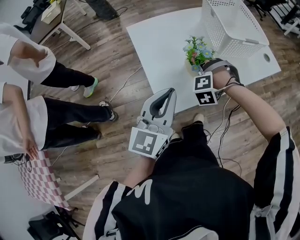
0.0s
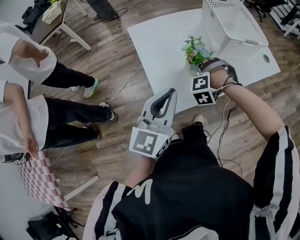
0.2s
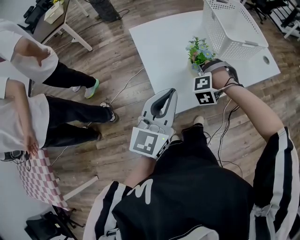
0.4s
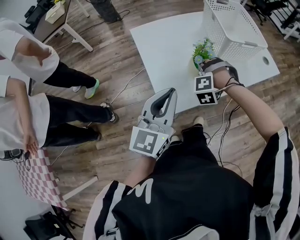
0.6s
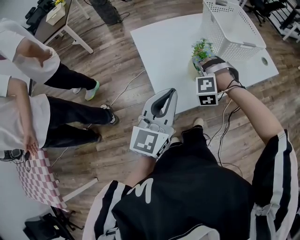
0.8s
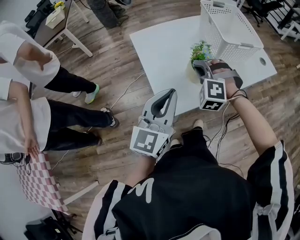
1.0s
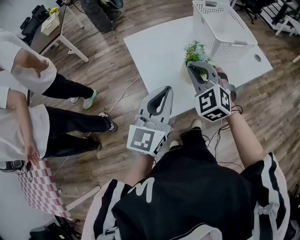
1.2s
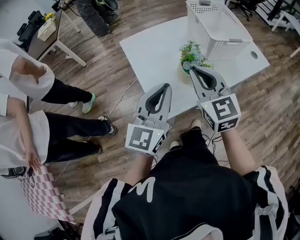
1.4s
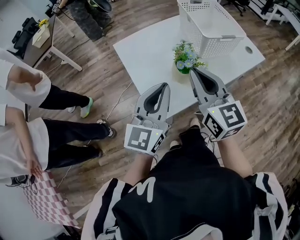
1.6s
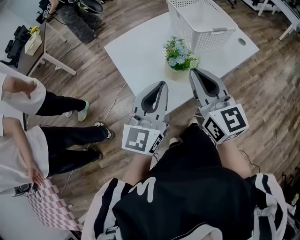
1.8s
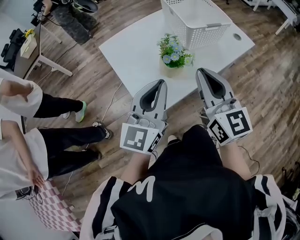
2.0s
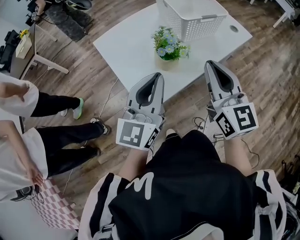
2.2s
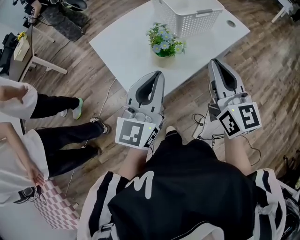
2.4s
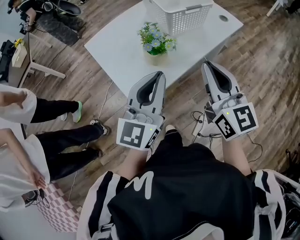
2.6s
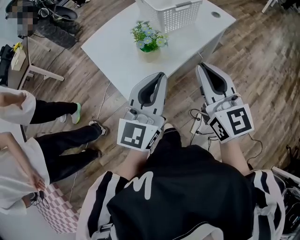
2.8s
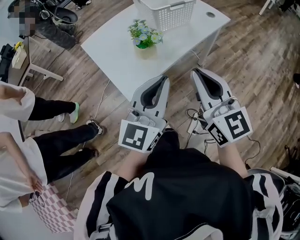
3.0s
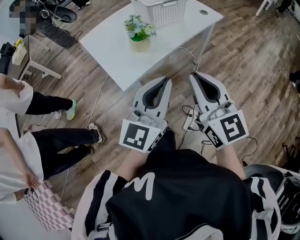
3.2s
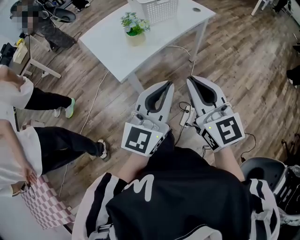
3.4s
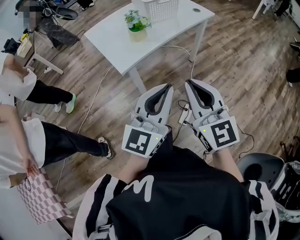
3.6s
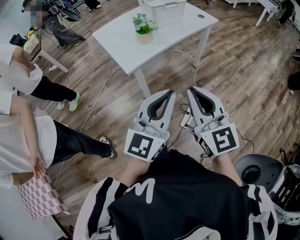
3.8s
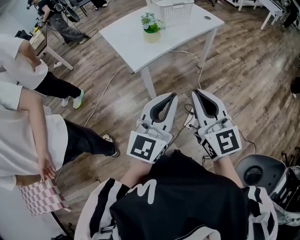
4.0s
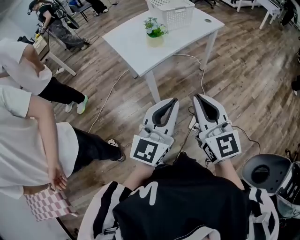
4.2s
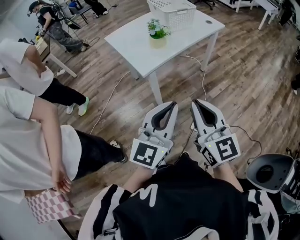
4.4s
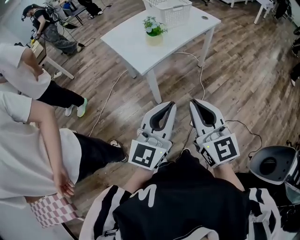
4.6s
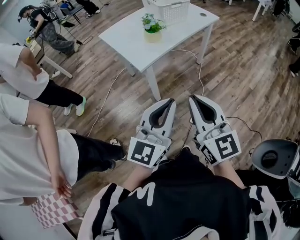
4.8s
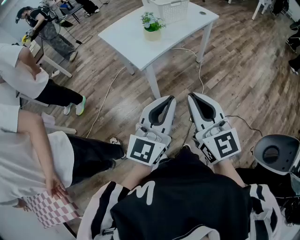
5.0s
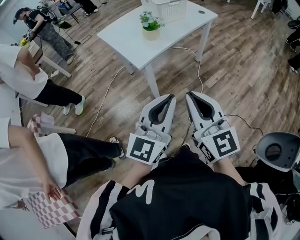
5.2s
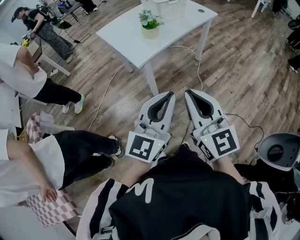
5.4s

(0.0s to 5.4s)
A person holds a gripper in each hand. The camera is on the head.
0.0s - 1.4s: The right gripper moves upward, about 20 cm, and points its fingers roughly 50 degrees further upward.
1.4s - 2.8s: The grippers both shift to the right and backward by some 15 cm. The right gripper changes its angle by some 20 degrees.
2.8s - 4.0s: Both grippers move backward, approximately 30 cm.
4.0s - 5.4s: The two grippers go roughly 5 cm to the left.

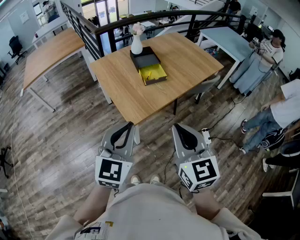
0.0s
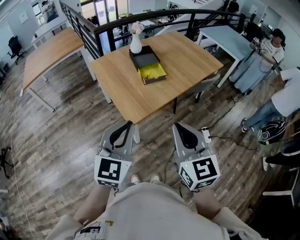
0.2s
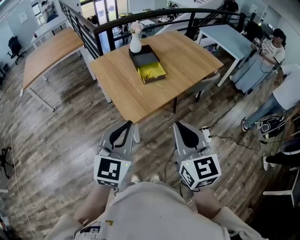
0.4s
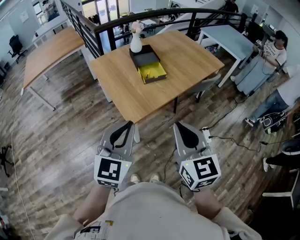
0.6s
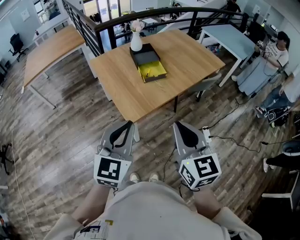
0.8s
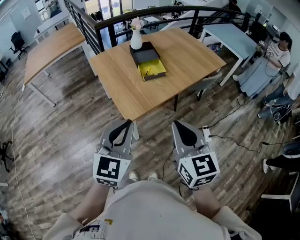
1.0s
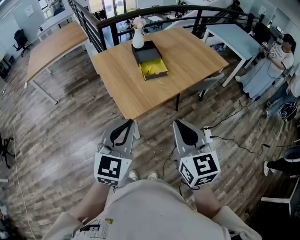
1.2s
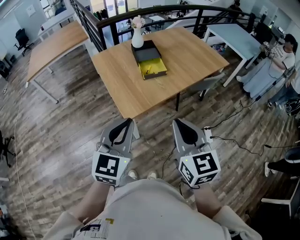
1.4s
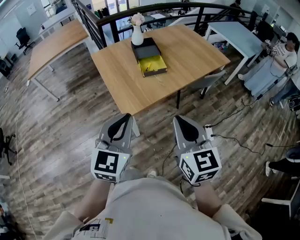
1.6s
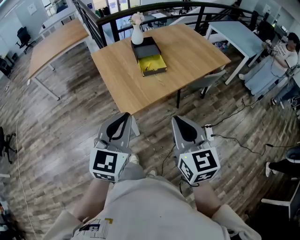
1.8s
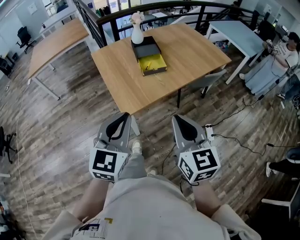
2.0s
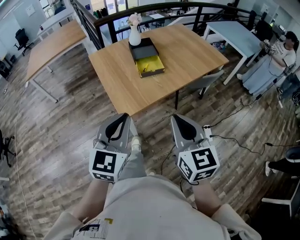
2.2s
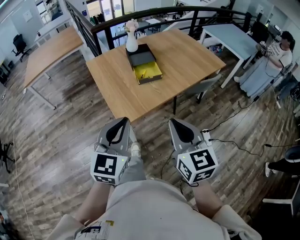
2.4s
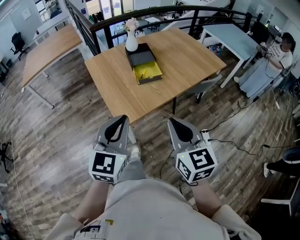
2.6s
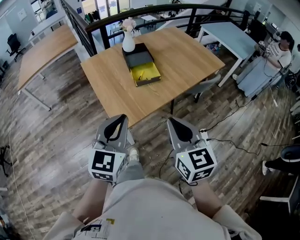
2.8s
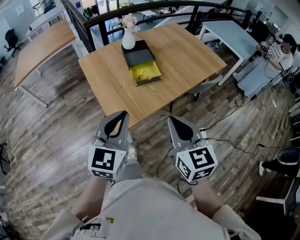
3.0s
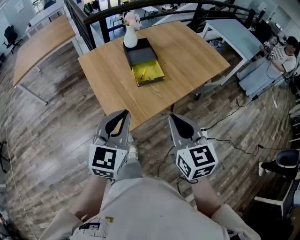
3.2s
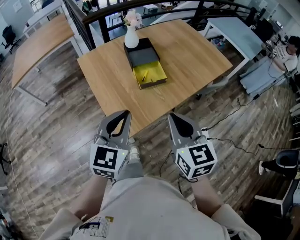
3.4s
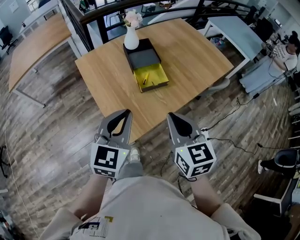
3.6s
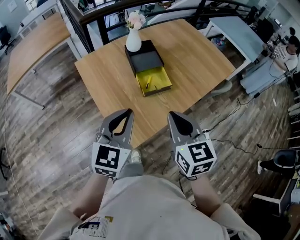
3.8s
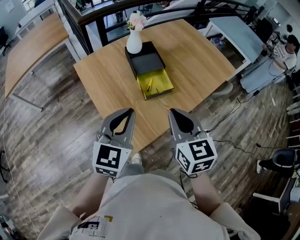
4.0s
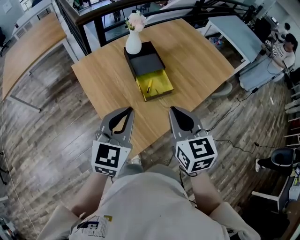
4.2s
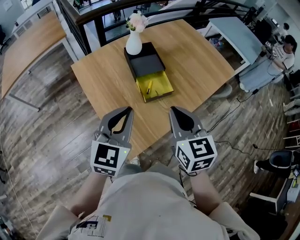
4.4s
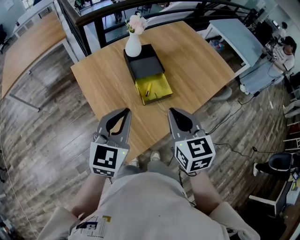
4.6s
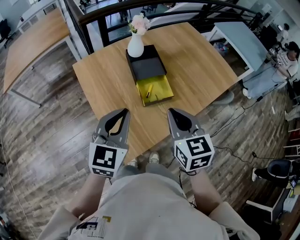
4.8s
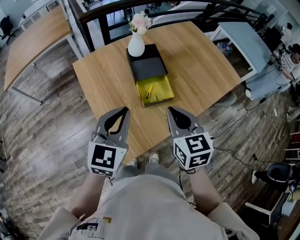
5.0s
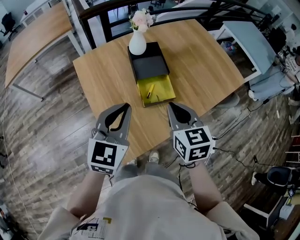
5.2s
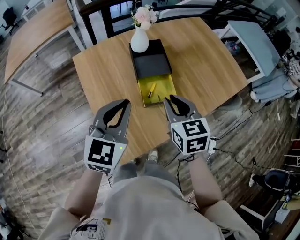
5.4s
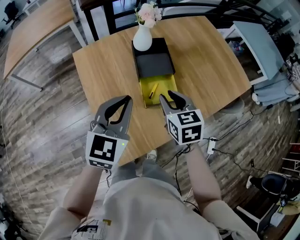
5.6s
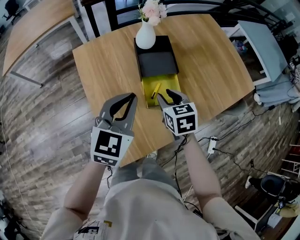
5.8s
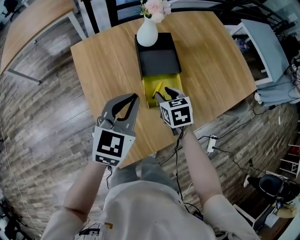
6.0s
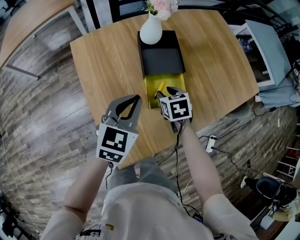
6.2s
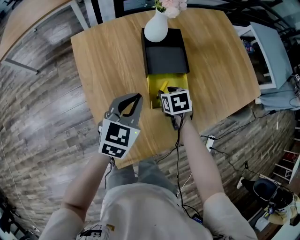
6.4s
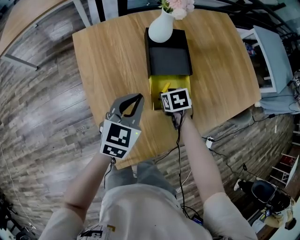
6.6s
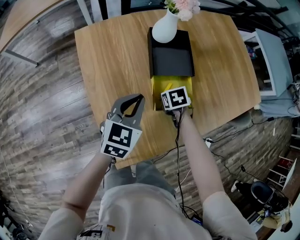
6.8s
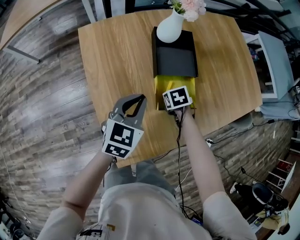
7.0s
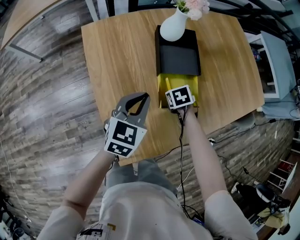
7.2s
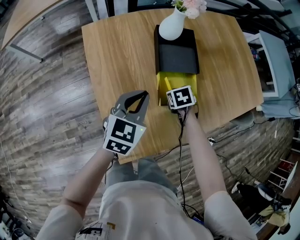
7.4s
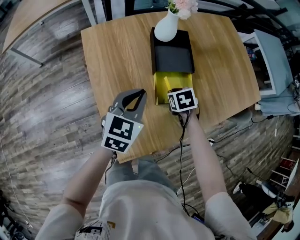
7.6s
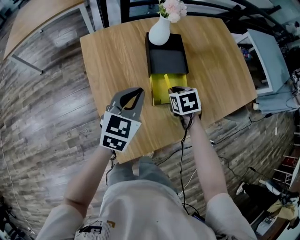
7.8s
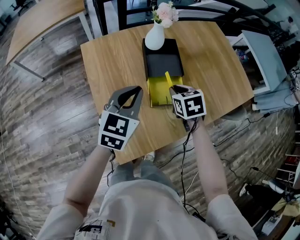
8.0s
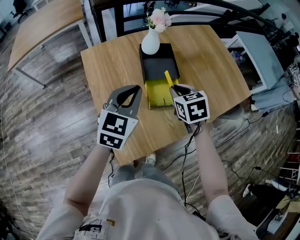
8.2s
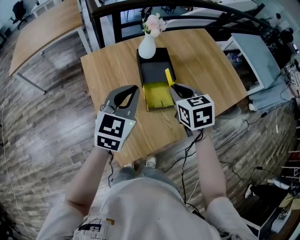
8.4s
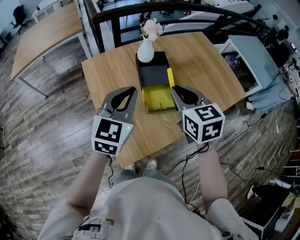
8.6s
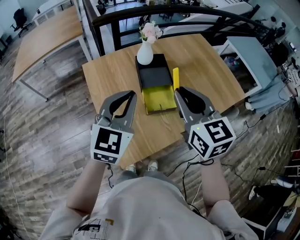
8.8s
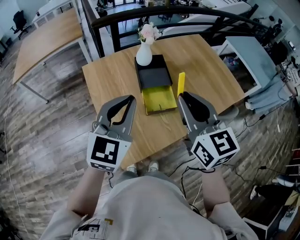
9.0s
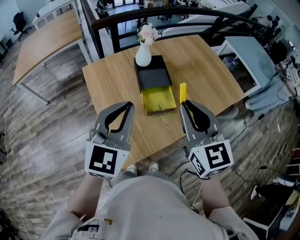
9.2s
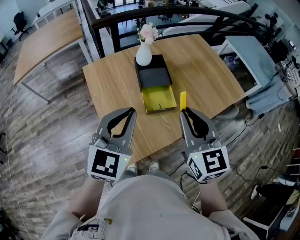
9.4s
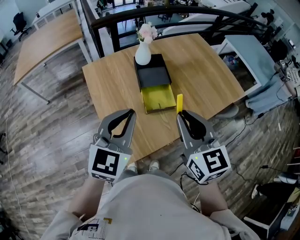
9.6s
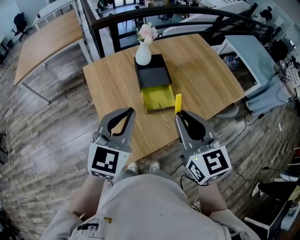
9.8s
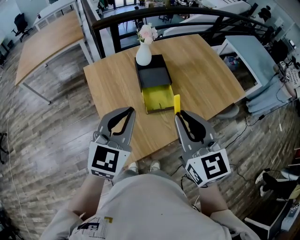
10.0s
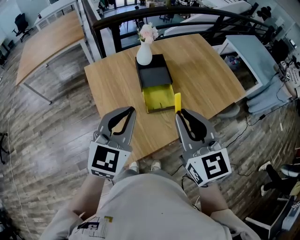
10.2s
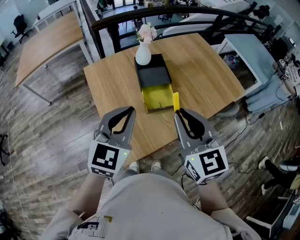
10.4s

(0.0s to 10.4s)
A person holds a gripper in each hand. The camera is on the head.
0.0s - 1.4s: The grippers both shift to the right by some 5 cm.
1.4s - 3.0s: The grippers both shift forward by roughly 15 cm.
3.0s - 4.4s: Both grippers move forward and to the left, roughly 25 cm.
4.4s - 6.0s: The right gripper moves downward and forward, approximately 30 cm, swivels approximately 30 degrees, and opens its fingers; the left gripper moves forward and downward, about 20 cm.
6.0s - 7.4s: Both grippers move downward, approximately 10 cm. The right gripper turns by about 20 degrees, and closes its fingers.
7.4s - 9.0s: The right gripper moves upward, approximately 50 cm, and points its fingers some 60 degrees further upward. The left gripper is displaced upward and backward by approximately 30 cm, and changes its angle by about 20 degrees.
9.0s - 10.4s: The right gripper goes some 5 cm backward. The left gripper shifts by approximately 5 cm.

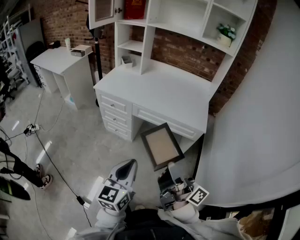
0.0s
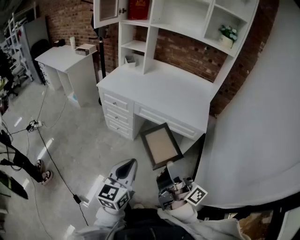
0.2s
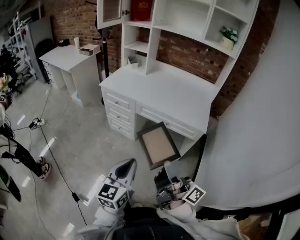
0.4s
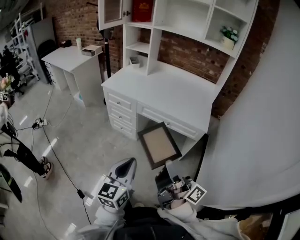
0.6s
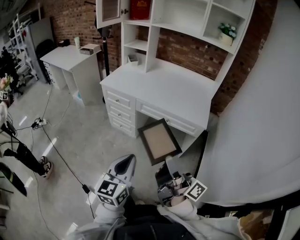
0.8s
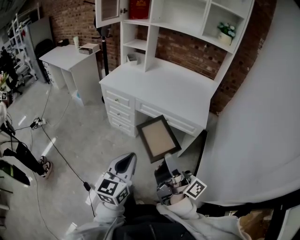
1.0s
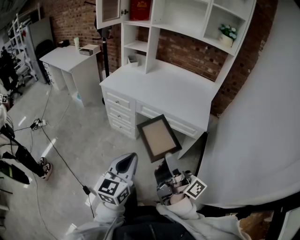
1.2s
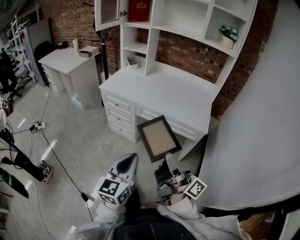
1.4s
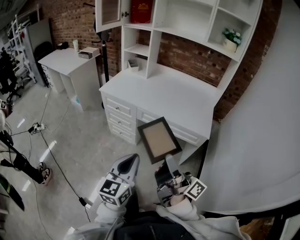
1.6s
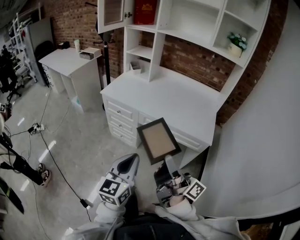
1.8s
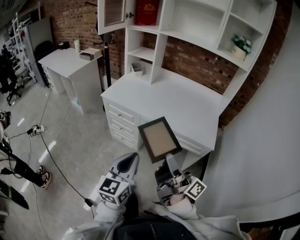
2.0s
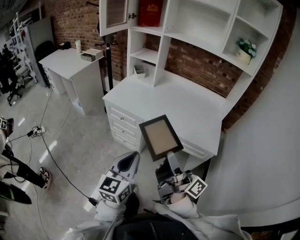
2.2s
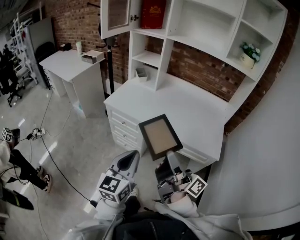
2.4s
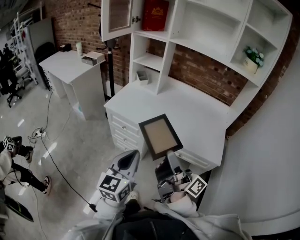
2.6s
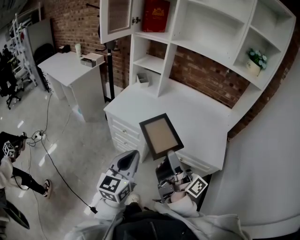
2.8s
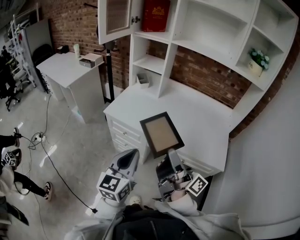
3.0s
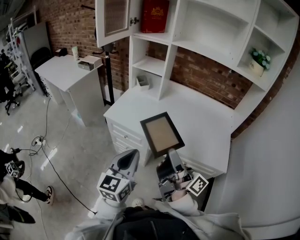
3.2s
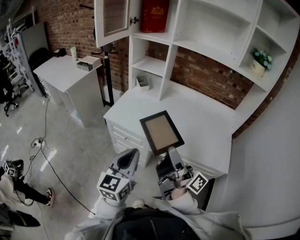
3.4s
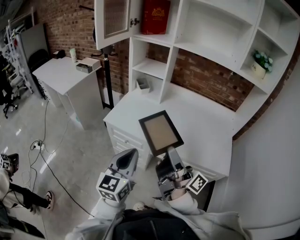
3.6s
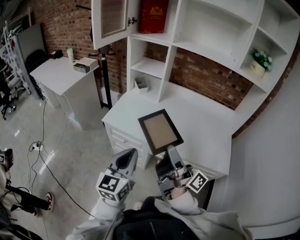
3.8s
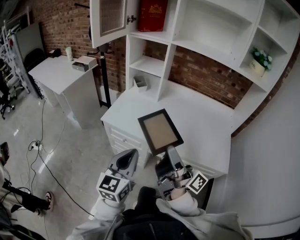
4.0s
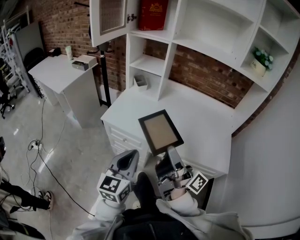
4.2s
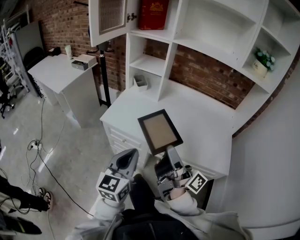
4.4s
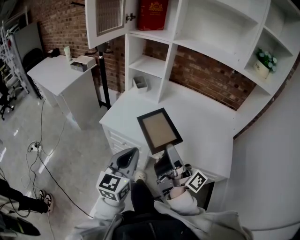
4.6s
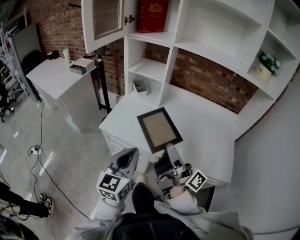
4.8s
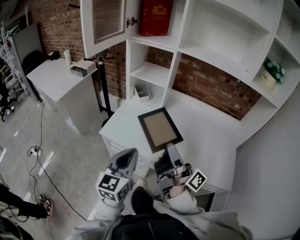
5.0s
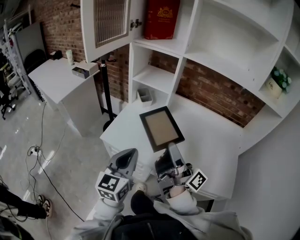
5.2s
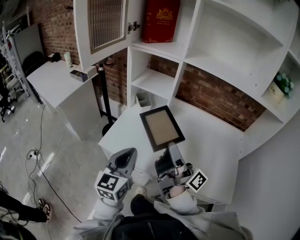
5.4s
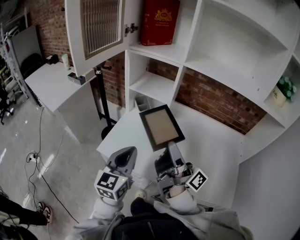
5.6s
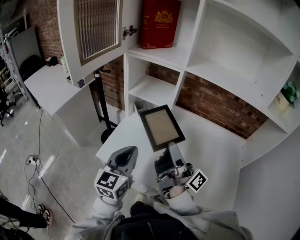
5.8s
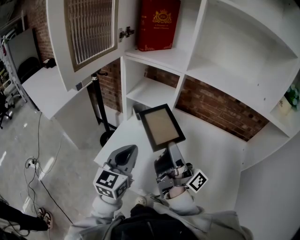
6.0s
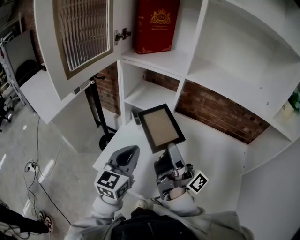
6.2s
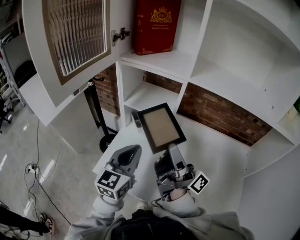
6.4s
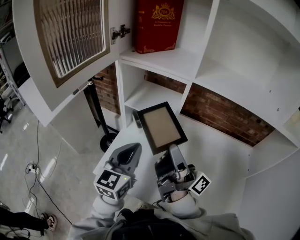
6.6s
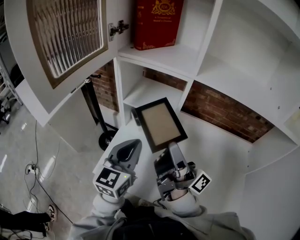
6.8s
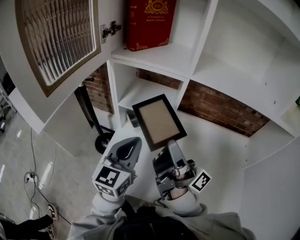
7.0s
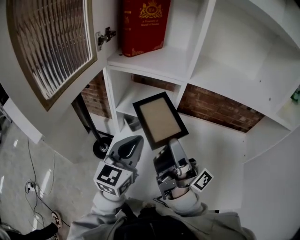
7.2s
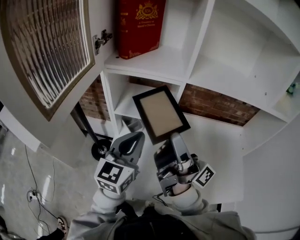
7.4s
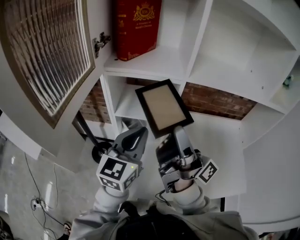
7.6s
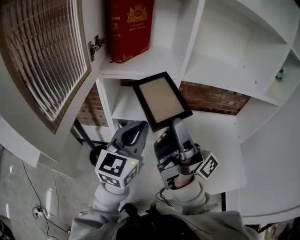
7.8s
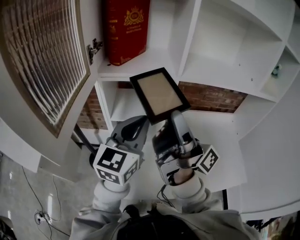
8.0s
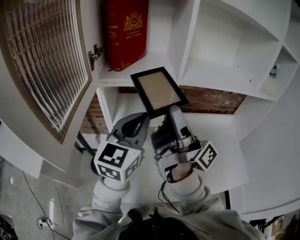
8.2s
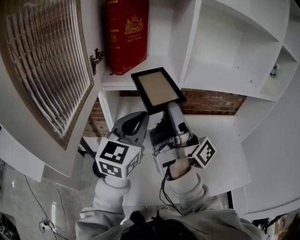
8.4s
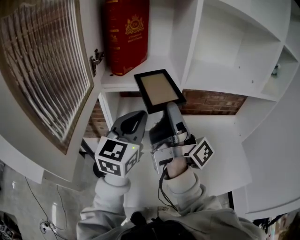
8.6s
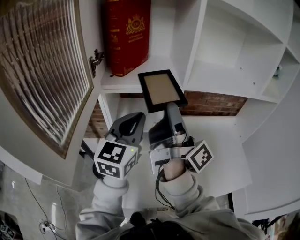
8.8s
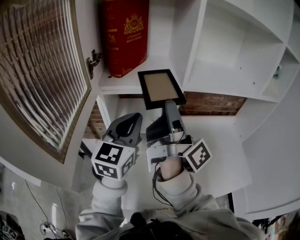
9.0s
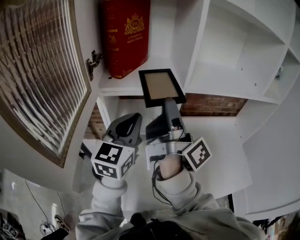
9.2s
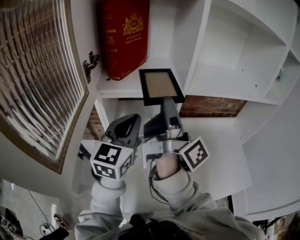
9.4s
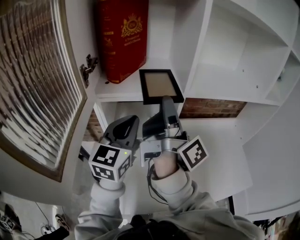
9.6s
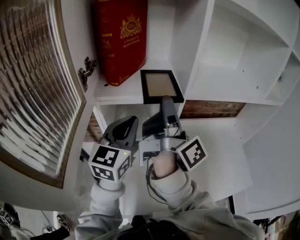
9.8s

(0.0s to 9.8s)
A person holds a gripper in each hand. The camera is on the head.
0.0s - 1.4s: There are only small adjustments of the grippers.
1.4s - 2.8s: Both grippers travel together forward, about 30 cm.
2.8s - 4.2s: Both grippers travel together forward, about 10 cm.
4.2s - 5.6s: The two grippers go about 25 cm forward.
5.6s - 7.0s: The grippers both shift forward by about 15 cm.
7.0s - 8.4s: Both grippers move upward and forward, about 15 cm. The right gripper rotates approximately 20 degrees, while the left gripper rotates roughly 20 degrees.
8.4s - 9.8s: Both grippers move forward, roughly 10 cm. The right gripper turns by roughly 20 degrees.
